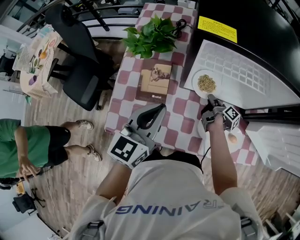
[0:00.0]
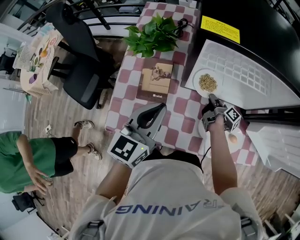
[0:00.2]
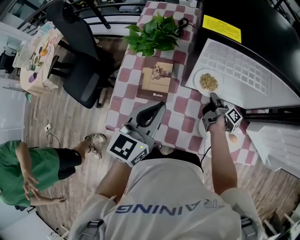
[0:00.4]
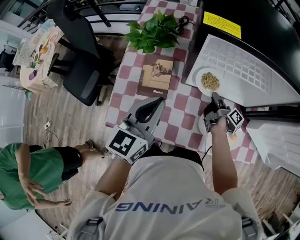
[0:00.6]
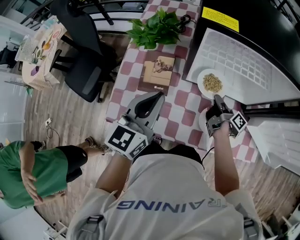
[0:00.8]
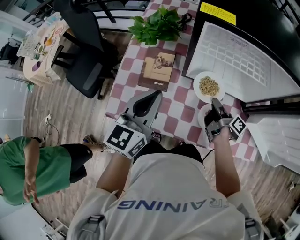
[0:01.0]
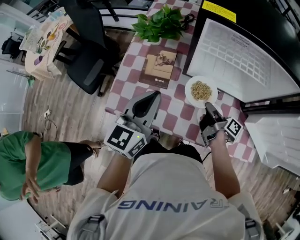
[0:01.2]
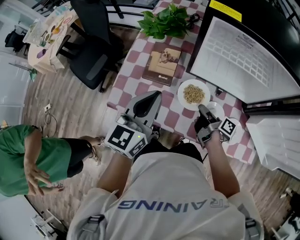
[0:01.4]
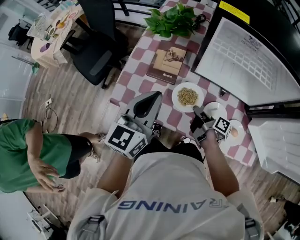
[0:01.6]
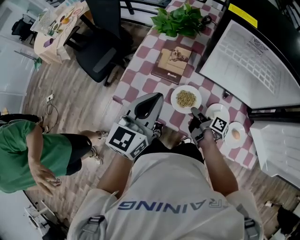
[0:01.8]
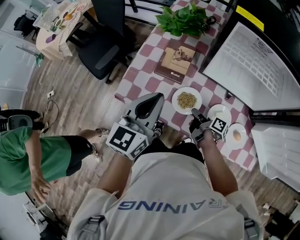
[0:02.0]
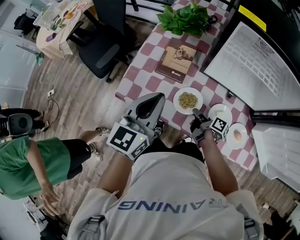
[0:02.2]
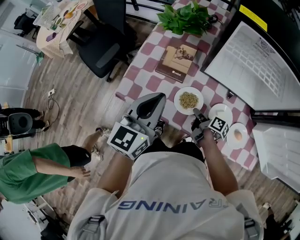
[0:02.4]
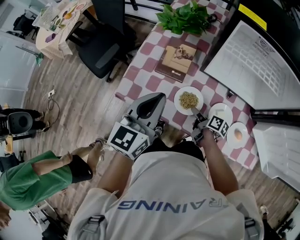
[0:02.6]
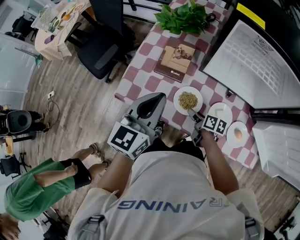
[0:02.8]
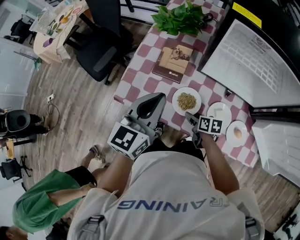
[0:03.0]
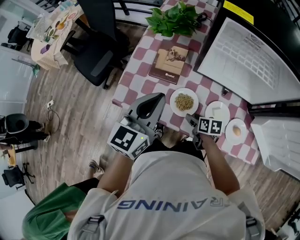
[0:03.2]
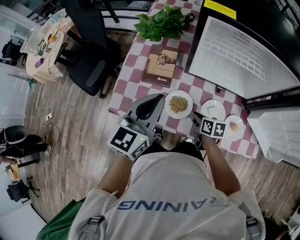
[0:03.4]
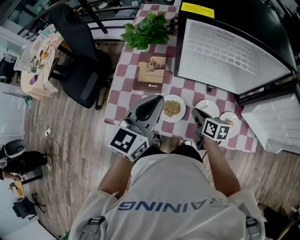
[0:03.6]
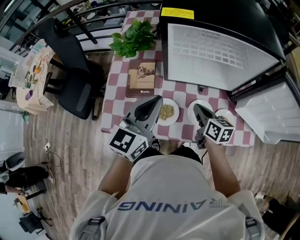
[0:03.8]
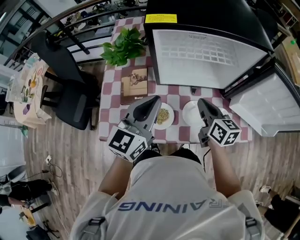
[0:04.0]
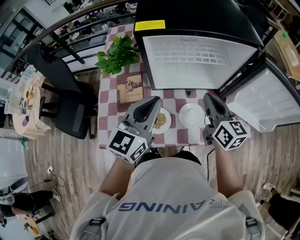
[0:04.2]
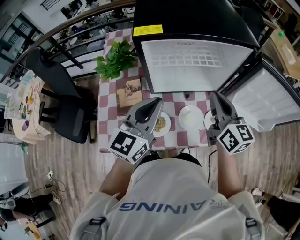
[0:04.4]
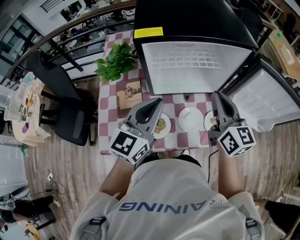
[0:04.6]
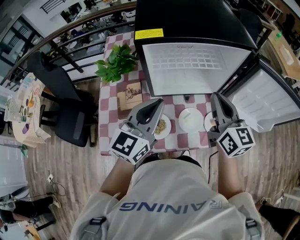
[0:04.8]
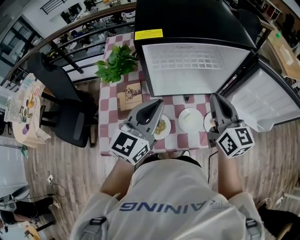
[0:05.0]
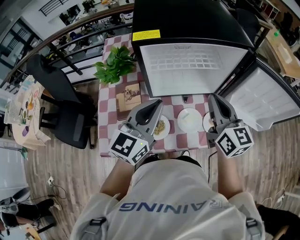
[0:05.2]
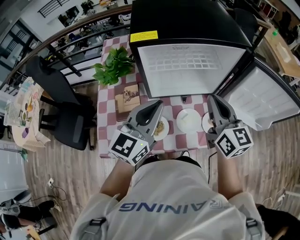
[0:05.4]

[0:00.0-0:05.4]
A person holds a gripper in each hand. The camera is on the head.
0:00.0 to 0:01.4: The right gripper heads backward, to the left and upward, covering some 15 cm, and rotates approximately 30 degrees, while the left gripper moves backward, about 5 cm.
0:01.4 to 0:02.8: The right gripper moves downward and to the left, some 10 cm, turns by about 40 degrees, and opens up.
0:02.8 to 0:04.0: The left gripper changes place by some 15 cm, and swivels about 20 degrees. The right gripper travels upward by roughly 20 cm, rotates approximately 40 degrees, and closes.
0:04.0 to 0:05.4: The left gripper moves about 5 cm. The right gripper shifts roughly 15 cm upward, and swivels roughly 30 degrees.

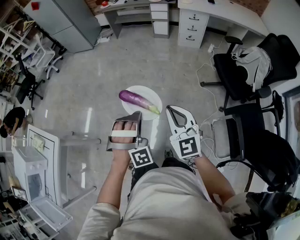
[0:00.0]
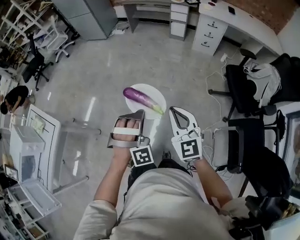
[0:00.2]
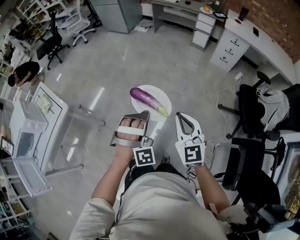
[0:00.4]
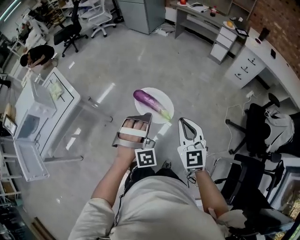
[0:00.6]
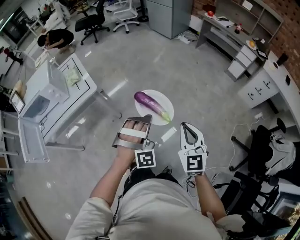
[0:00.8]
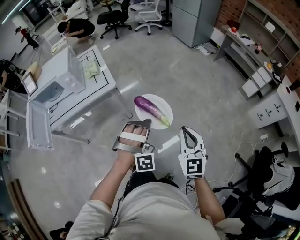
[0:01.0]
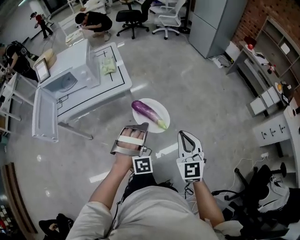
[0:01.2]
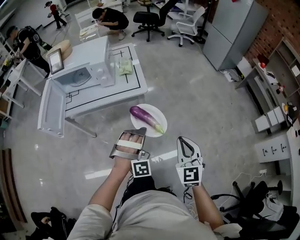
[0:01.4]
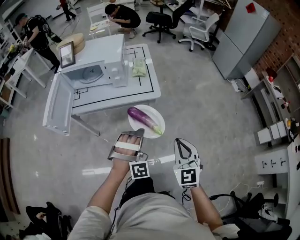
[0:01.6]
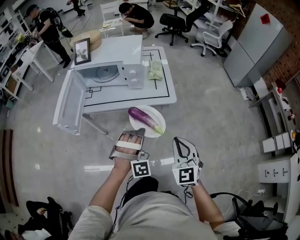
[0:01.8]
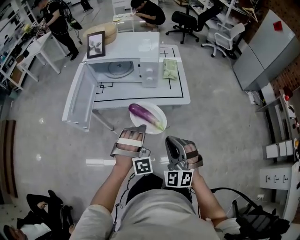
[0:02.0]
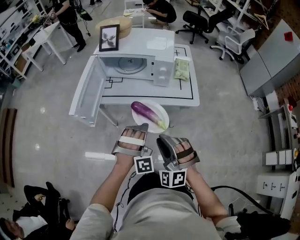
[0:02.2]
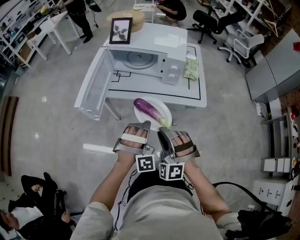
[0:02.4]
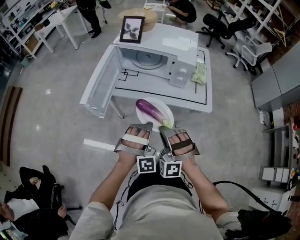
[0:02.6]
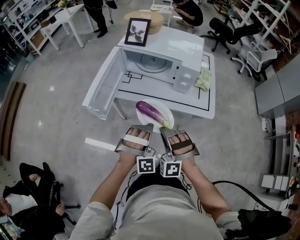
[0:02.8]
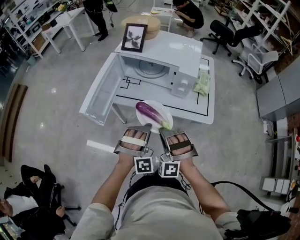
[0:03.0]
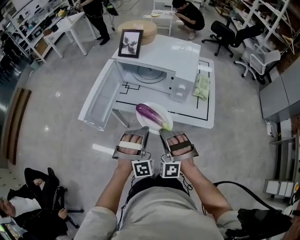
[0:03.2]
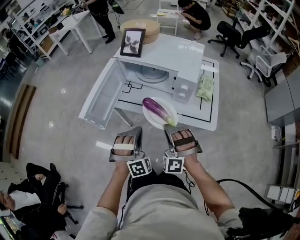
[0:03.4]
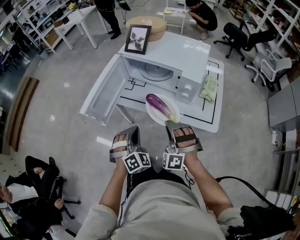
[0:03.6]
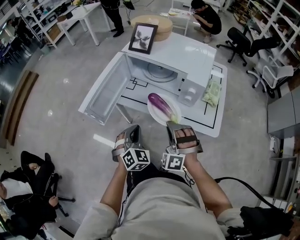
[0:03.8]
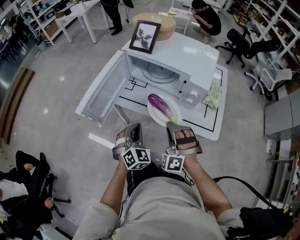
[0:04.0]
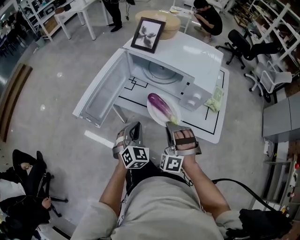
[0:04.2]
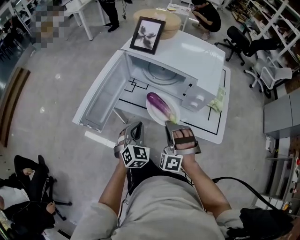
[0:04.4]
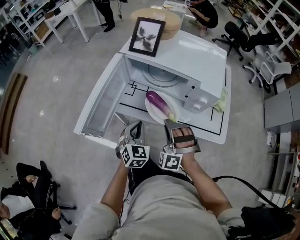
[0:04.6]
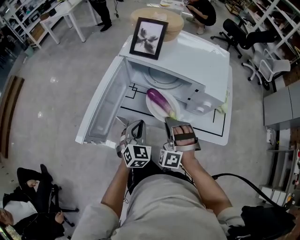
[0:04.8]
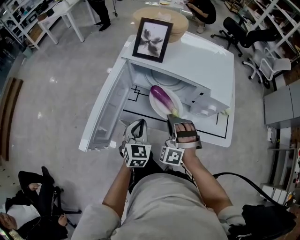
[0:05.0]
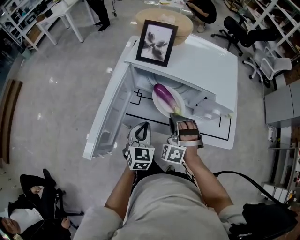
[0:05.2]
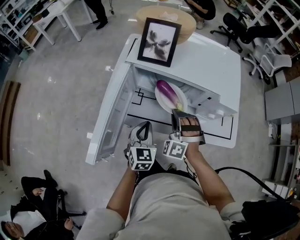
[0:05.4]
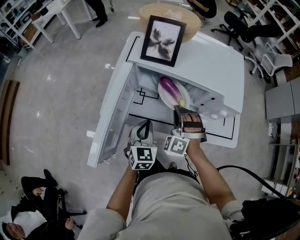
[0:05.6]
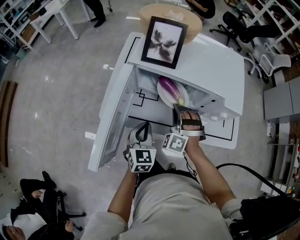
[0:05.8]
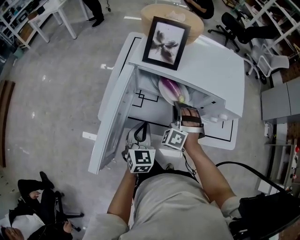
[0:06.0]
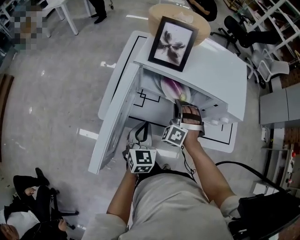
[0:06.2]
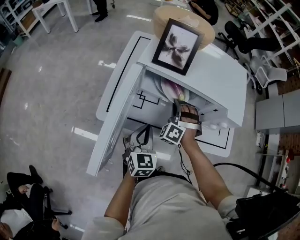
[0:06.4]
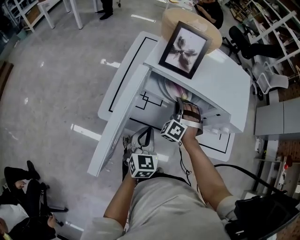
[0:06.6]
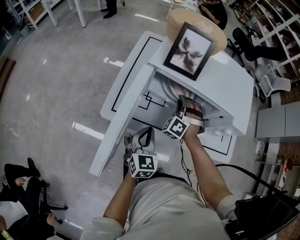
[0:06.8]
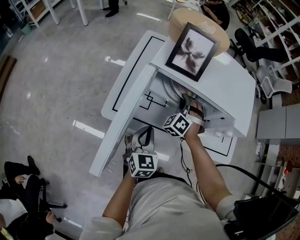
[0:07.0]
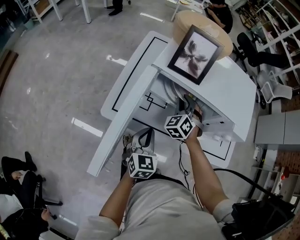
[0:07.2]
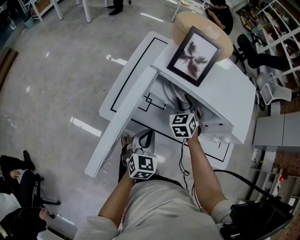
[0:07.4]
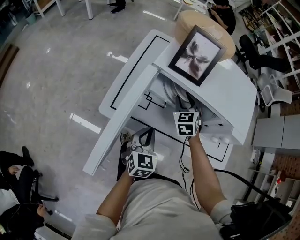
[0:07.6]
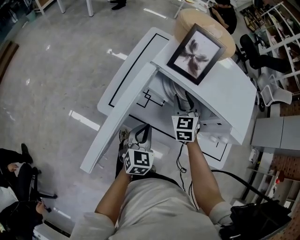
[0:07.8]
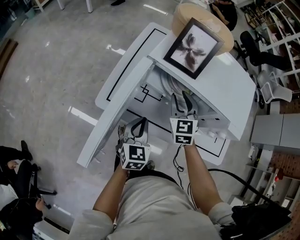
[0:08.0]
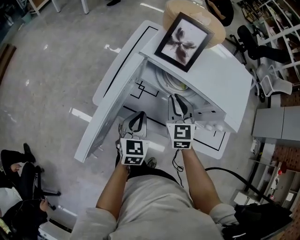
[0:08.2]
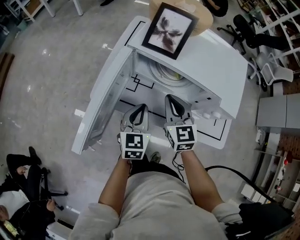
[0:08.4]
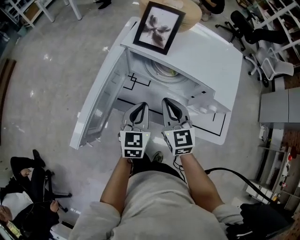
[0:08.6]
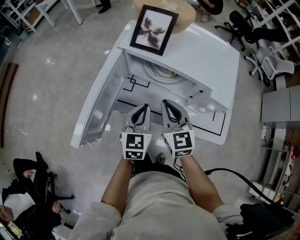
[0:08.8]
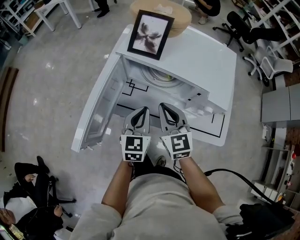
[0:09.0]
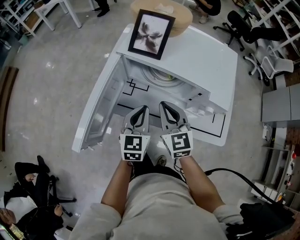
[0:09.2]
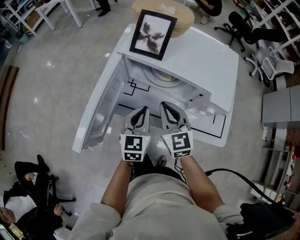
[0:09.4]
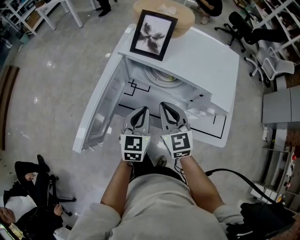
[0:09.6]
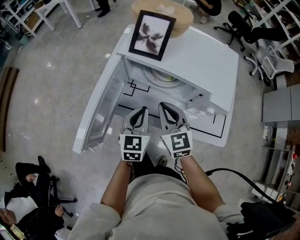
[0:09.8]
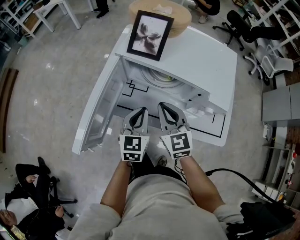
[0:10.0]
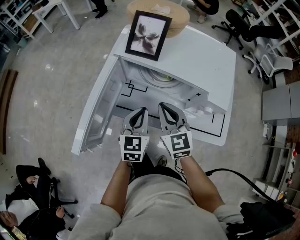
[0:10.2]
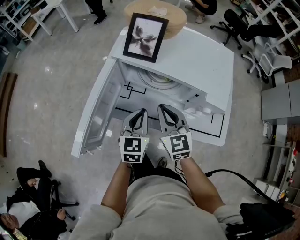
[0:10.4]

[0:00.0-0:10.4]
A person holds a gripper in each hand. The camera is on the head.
0:00.0 to 0:01.4: The pair of grippers is taken approximately 50 cm. The left gripper turns by approximately 50 degrees; the right gripper changes its angle by about 50 degrees.
0:01.4 to 0:03.0: The grippers both shift to the left and forward by about 40 cm. The left gripper swivels some 30 degrees. The right gripper rotates around the line of its fingers by approximately 80 degrees, counterclockwise from behind.
0:03.0 to 0:04.4: The left gripper travels forward, downward and to the left by roughly 15 cm, and rotates around the line of its fingers by some 60 degrees, counterclockwise from behind, while the right gripper moves forward and downward, roughly 15 cm.
0:04.4 to 0:06.0: The left gripper moves forward and to the left, roughly 10 cm, and changes its angle by roughly 20 degrees. Meanwhile the right gripper travels forward by some 20 cm.
0:06.0 to 0:07.4: The right gripper moves forward, about 10 cm, turns by some 40 degrees, and opens up.
0:07.4 to 0:09.0: The right gripper moves backward and upward, roughly 20 cm, turns by some 40 degrees, and closes. Meanwhile the left gripper heads upward, covering approximately 10 cm.
0:09.0 to 0:10.4: Both grippers stay about where they are.

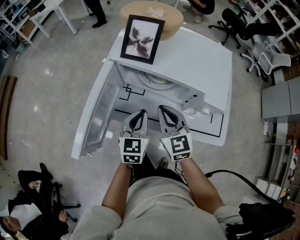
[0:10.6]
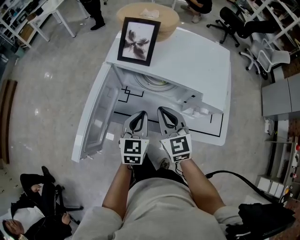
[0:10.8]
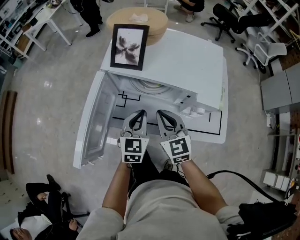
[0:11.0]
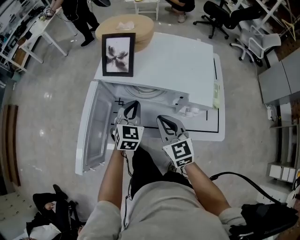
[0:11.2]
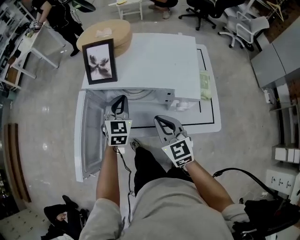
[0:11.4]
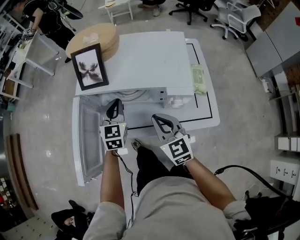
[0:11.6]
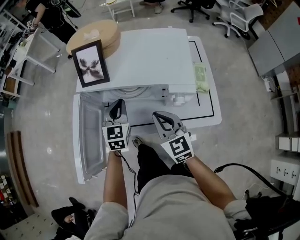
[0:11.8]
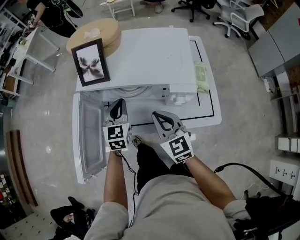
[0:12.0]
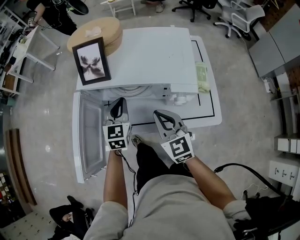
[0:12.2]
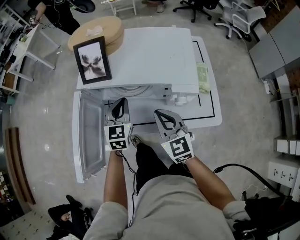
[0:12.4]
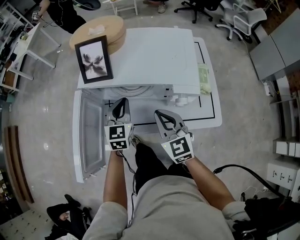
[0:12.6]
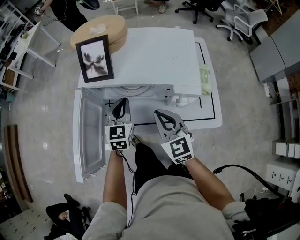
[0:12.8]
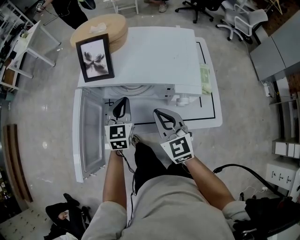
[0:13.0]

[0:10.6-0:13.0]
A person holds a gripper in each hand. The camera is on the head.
0:10.6 to 0:11.8: The left gripper moves forward, some 10 cm, while the right gripper shifts some 5 cm to the right.
0:11.8 to 0:13.0: The grippers stay close to where they were, moving slightly.

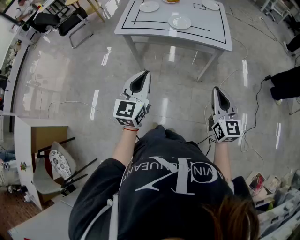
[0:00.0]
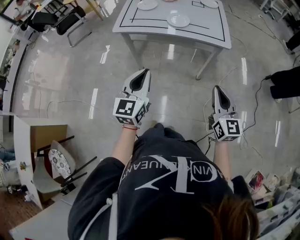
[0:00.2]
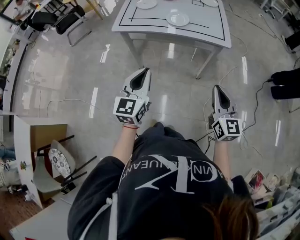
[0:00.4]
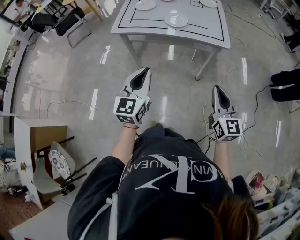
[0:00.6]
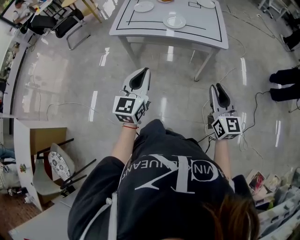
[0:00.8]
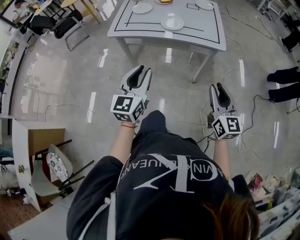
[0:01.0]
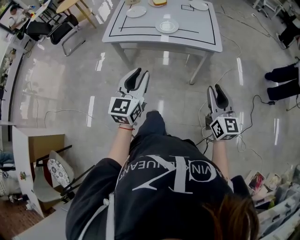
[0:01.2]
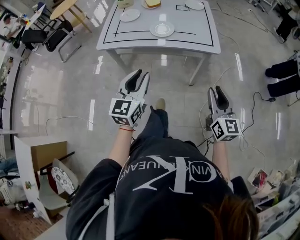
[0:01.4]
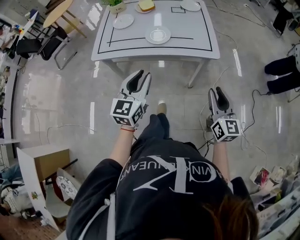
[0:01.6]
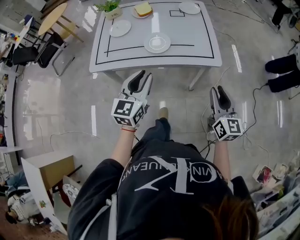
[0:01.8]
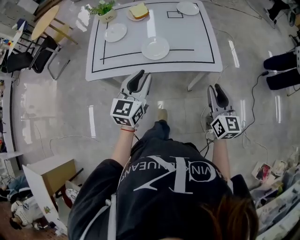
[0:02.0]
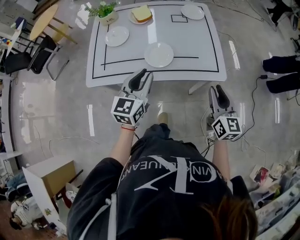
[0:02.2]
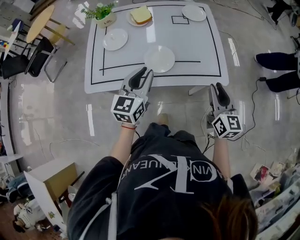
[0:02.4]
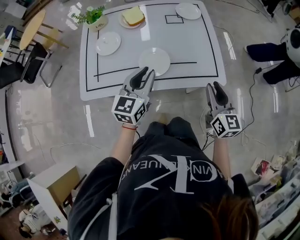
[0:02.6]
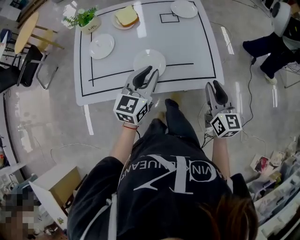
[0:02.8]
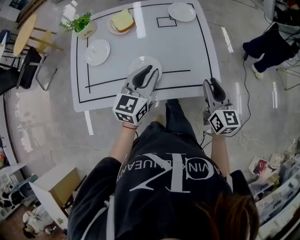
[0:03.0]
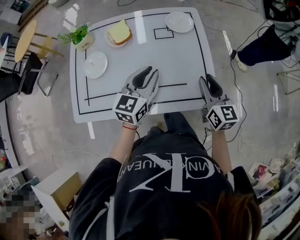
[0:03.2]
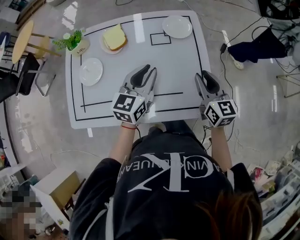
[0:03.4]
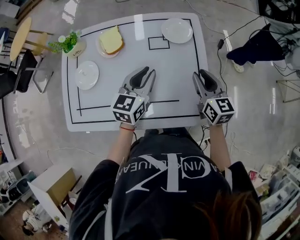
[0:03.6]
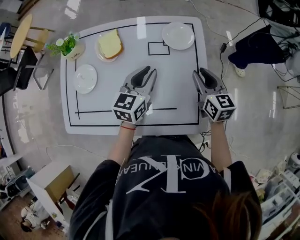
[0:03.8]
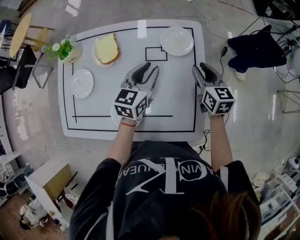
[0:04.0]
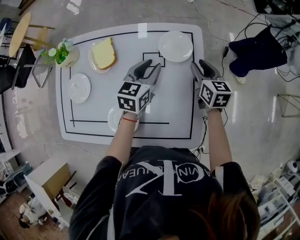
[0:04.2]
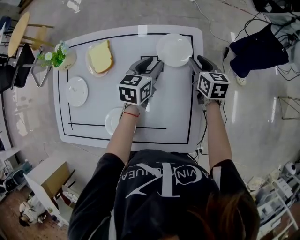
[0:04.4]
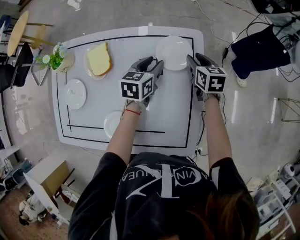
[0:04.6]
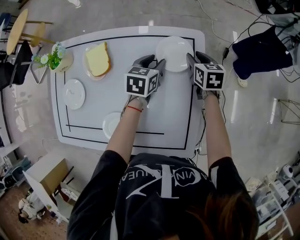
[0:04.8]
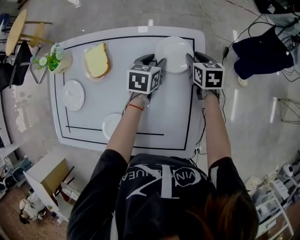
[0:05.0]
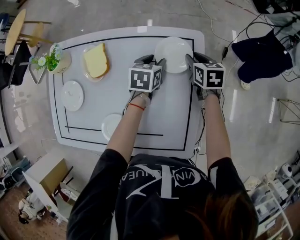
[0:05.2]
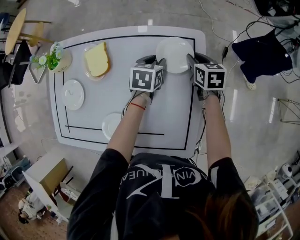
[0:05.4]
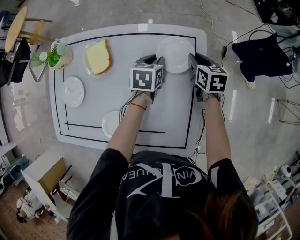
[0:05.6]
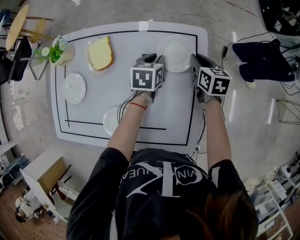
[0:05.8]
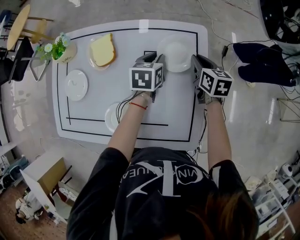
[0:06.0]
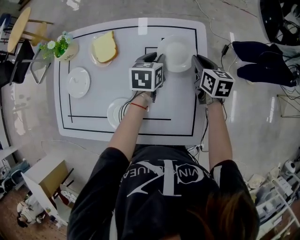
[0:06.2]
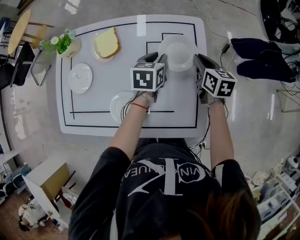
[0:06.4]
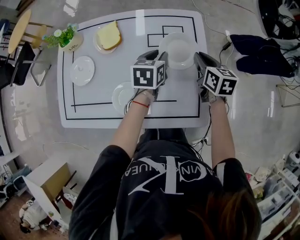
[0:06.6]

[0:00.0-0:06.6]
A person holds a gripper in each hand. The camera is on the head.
0:00.0 to 0:01.6: The left gripper is displaced forward by roughly 20 cm, and opens; the right gripper shifts roughly 15 cm forward and to the right, and opens.
0:01.6 to 0:03.2: Both grippers travel together forward, about 40 cm.
0:03.2 to 0:05.0: The right gripper heads forward, covering about 35 cm, and points its fingers roughly 30 degrees further downward; the left gripper heads forward and downward, covering approximately 35 cm, changes its angle by approximately 30 degrees, and opens up.
0:05.0 to 0:06.6: The two grippers go about 15 cm backward and upward. The right gripper closes.
